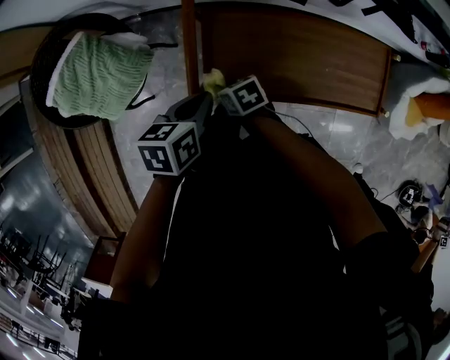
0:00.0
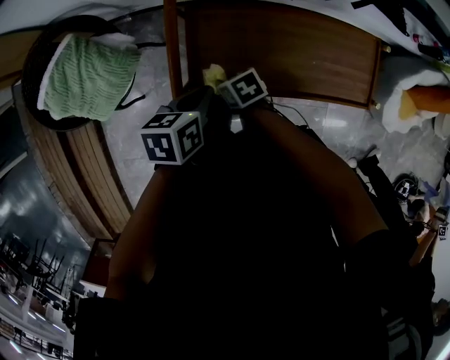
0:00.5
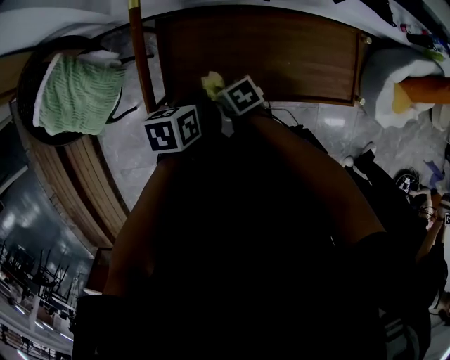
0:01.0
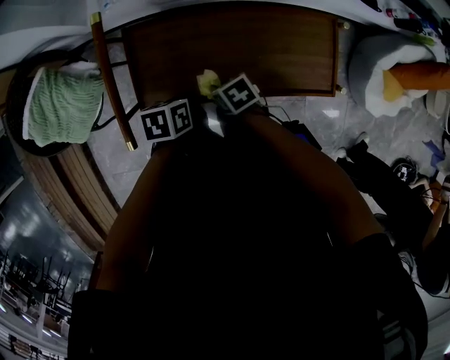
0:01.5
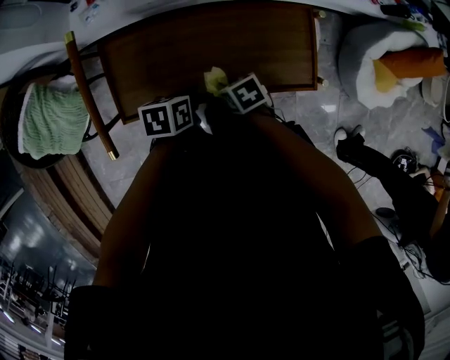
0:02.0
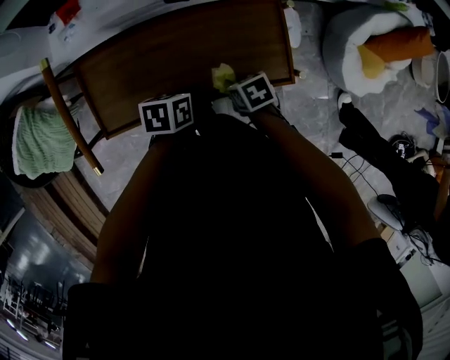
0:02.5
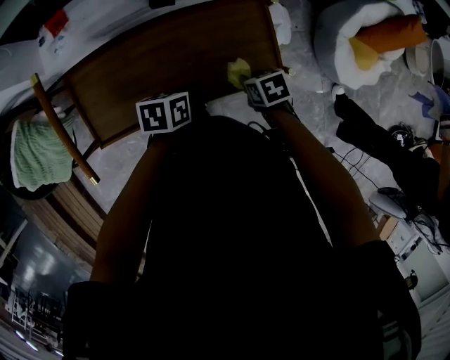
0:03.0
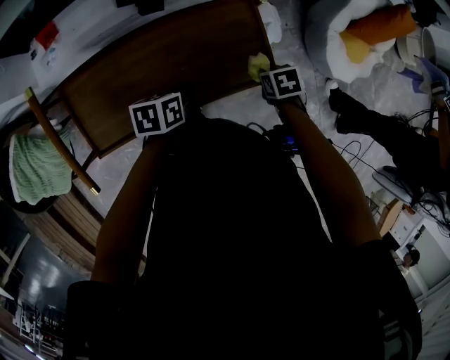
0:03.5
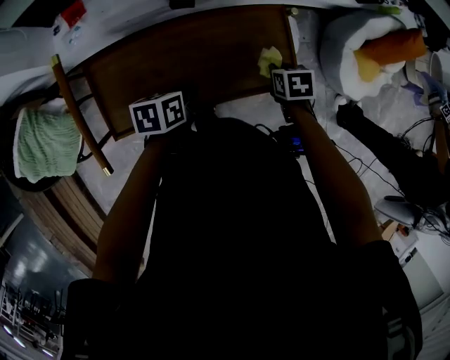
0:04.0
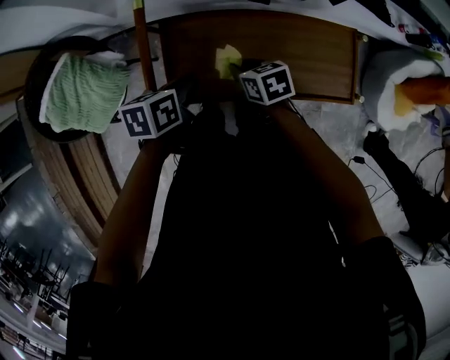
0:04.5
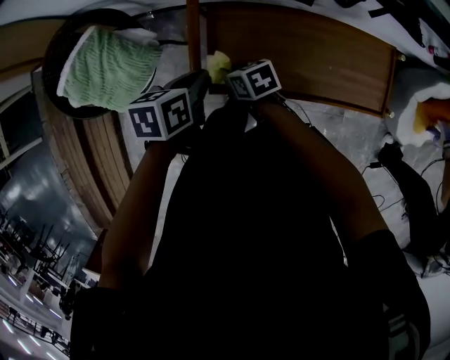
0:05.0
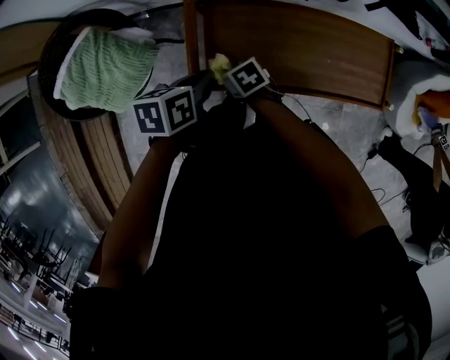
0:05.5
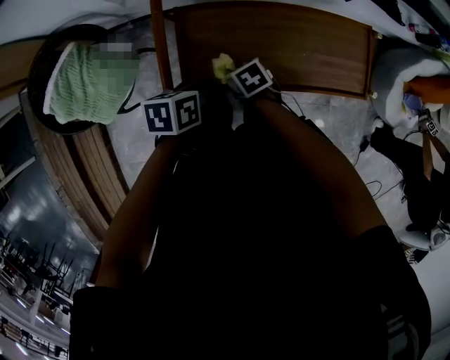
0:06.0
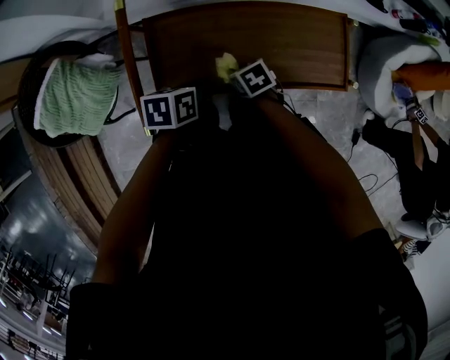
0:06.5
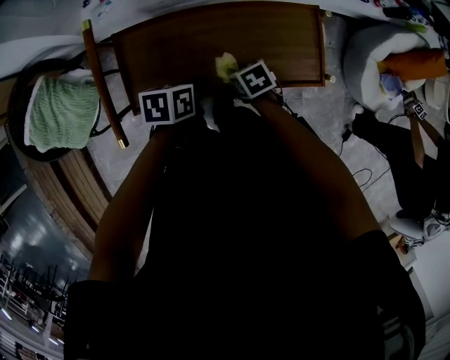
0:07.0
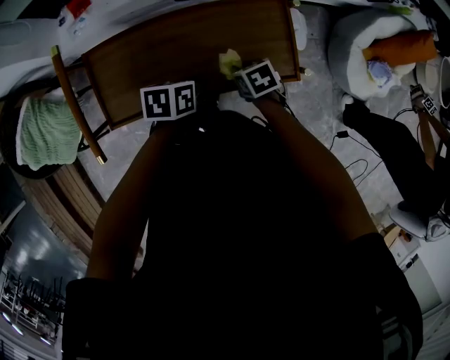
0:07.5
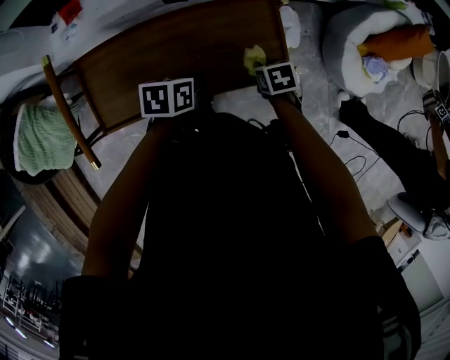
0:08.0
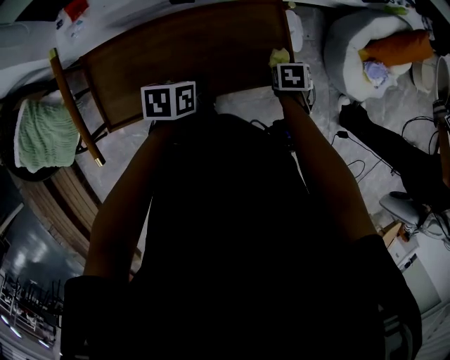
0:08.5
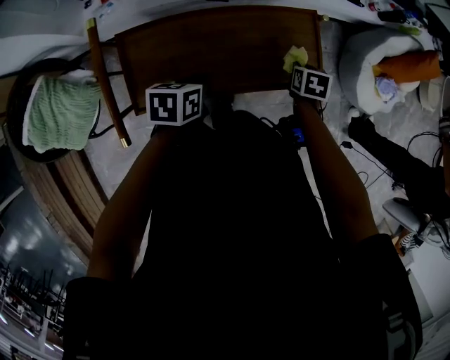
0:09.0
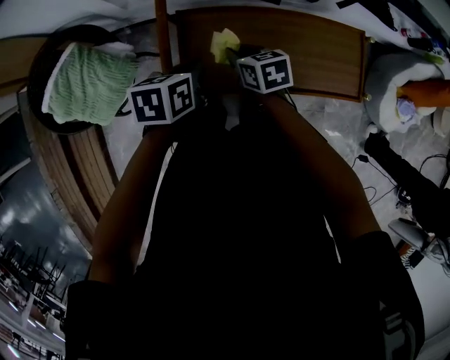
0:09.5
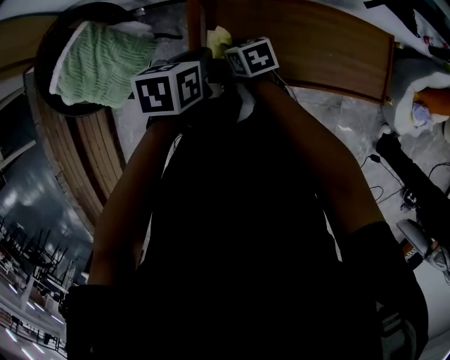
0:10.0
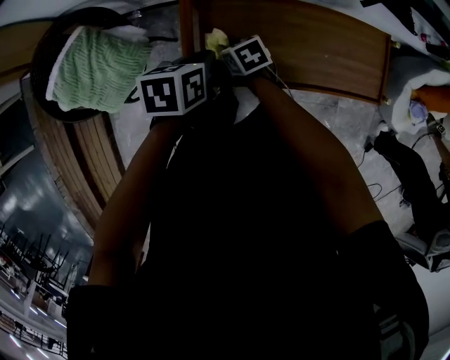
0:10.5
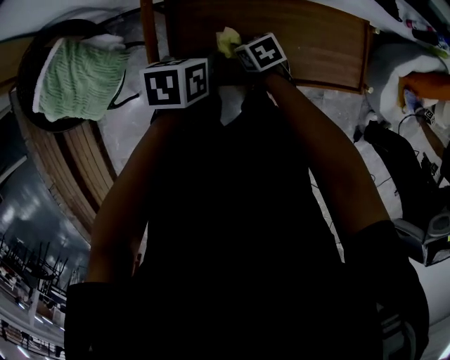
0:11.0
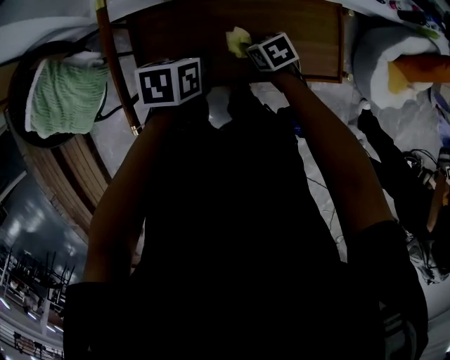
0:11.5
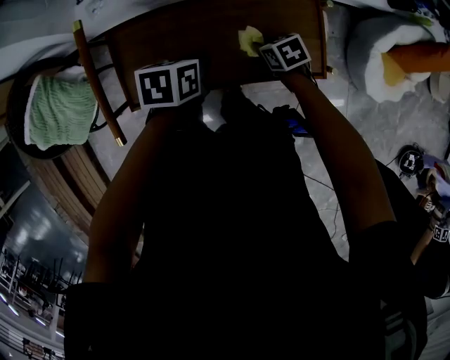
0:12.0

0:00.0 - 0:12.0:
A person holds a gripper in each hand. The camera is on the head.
0:00.0 - 0:02.0: The left gripper moves roughly 25 cm. Meanwhile the right gripper ends up approximately 30 cm from where it was.
0:02.0 - 0:04.0: The right gripper changes place by some 25 cm, and turns by some 30 degrees.
0:04.0 - 0:06.0: The left gripper moves about 20 cm, while the right gripper moves roughly 40 cm, and turns by some 40 degrees.
0:06.0 - 0:08.0: The left gripper changes place by approximately 30 cm. Meanwhile the right gripper ends up about 40 cm from where it was, and swivels approximately 30 degrees.
0:08.0 - 0:10.0: The left gripper ends up roughly 35 cm from where it was, and turns by about 20 degrees; the right gripper travels upward and back again, approximately 10 cm each way, and swivels roughly 30 degrees.
0:10.0 - 0:12.0: The grippers both shift to the right by about 30 cm.

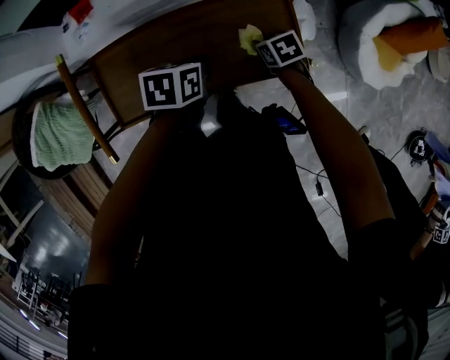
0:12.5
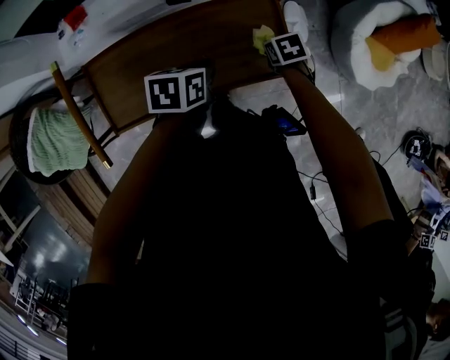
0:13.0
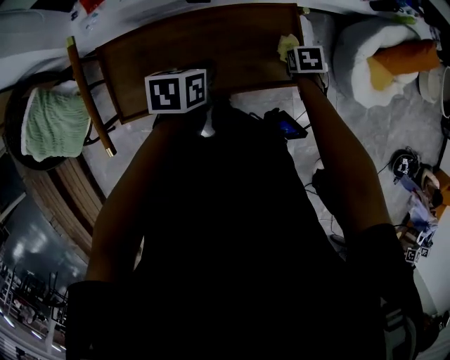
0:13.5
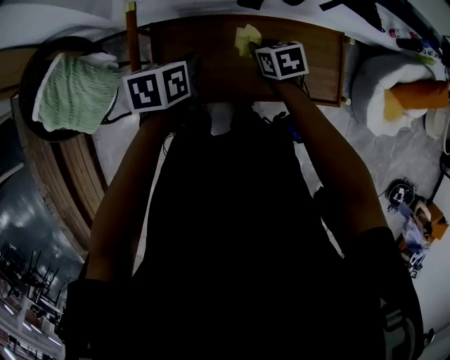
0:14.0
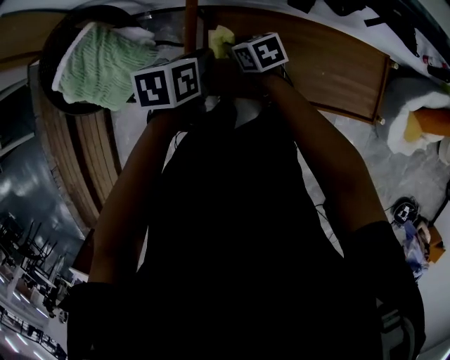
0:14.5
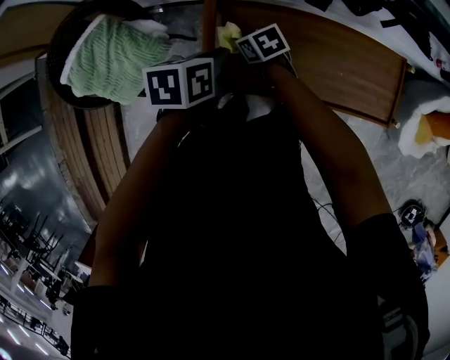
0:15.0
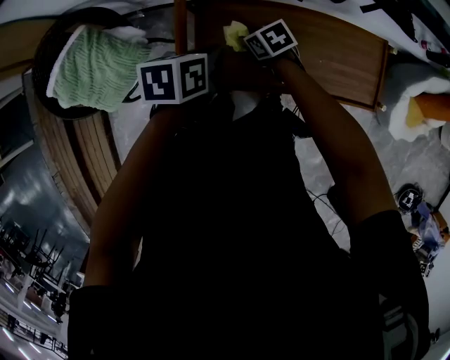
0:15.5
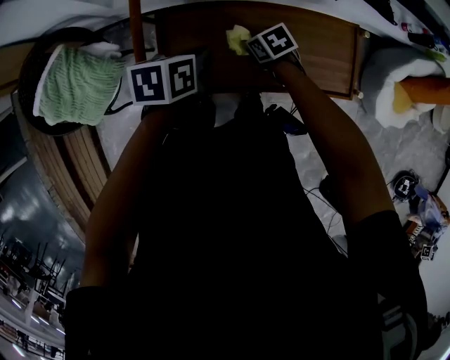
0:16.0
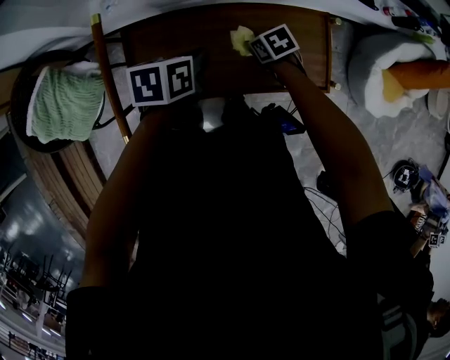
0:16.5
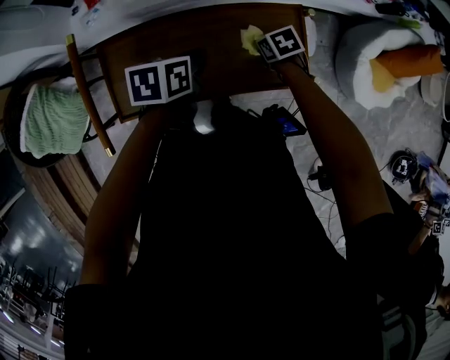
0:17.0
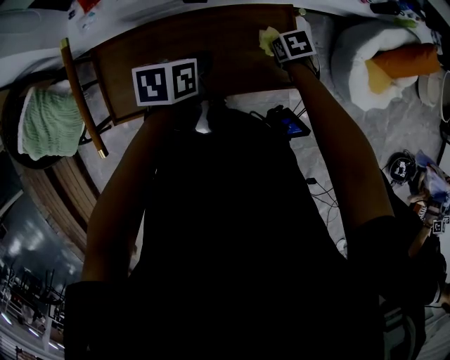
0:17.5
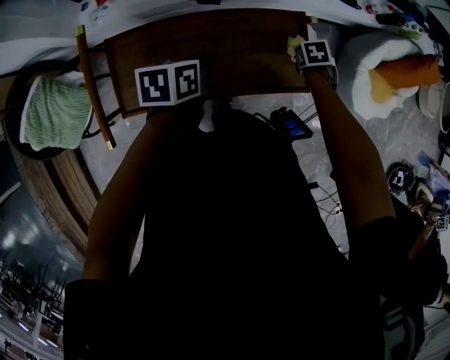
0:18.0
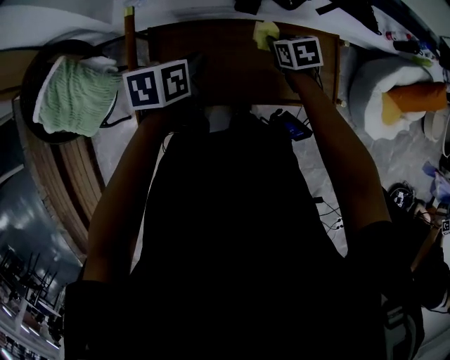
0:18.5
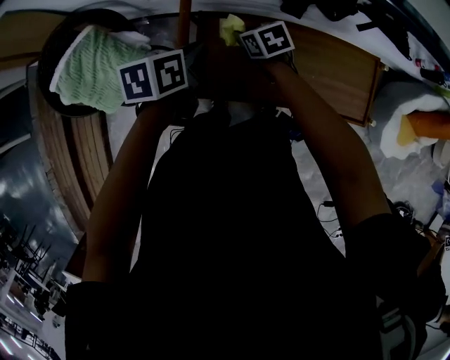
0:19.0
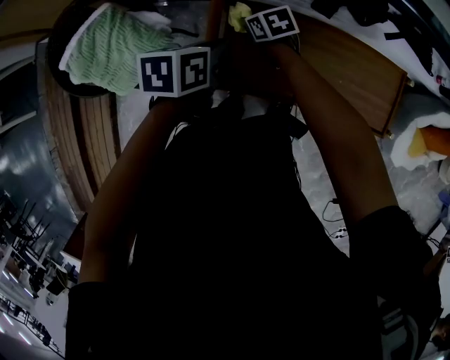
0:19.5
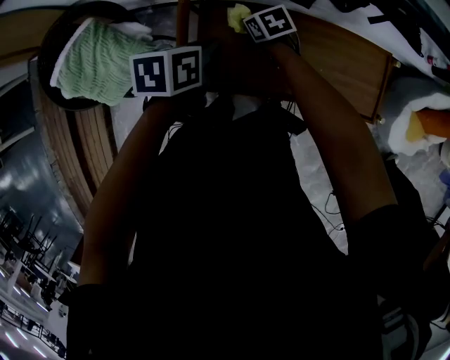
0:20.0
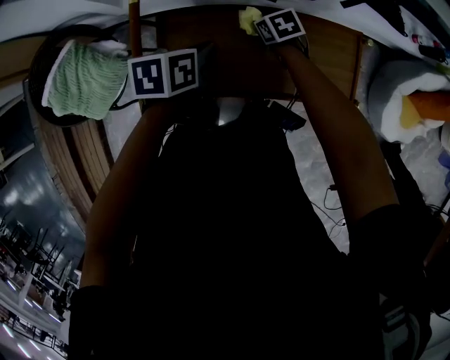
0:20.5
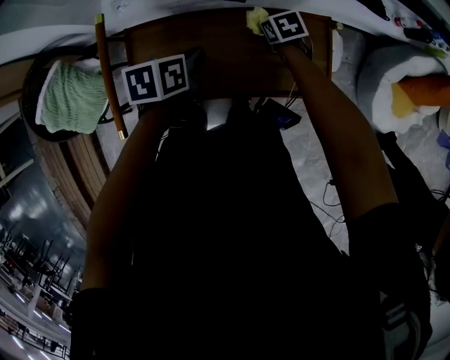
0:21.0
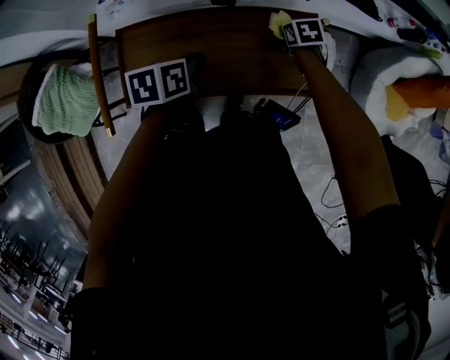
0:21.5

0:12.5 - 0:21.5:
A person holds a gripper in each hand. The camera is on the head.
0:12.5 - 0:14.5: The left gripper shifts by approximately 35 cm, and changes its angle by some 20 degrees; the right gripper shifts by roughly 40 cm, and turns by approximately 20 degrees.
0:14.5 - 0:17.0: Both grippers move to the right, some 35 cm. The right gripper swivels some 30 degrees.
0:17.0 - 0:19.5: The left gripper shifts by approximately 30 cm; the right gripper travels upward and back again, about 10 cm each way, and changes its angle by about 20 degrees.
0:19.5 - 0:21.5: The left gripper moves to the right, some 30 cm. Meanwhile the right gripper shifts roughly 50 cm to the right, and rotates about 30 degrees.

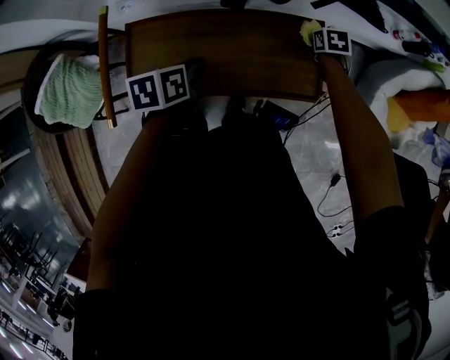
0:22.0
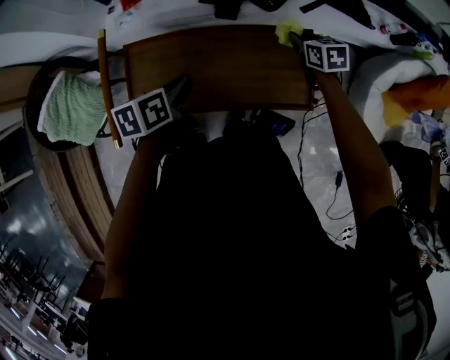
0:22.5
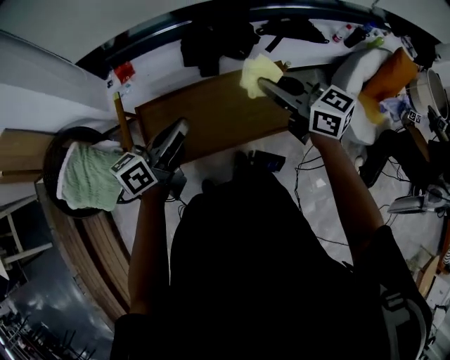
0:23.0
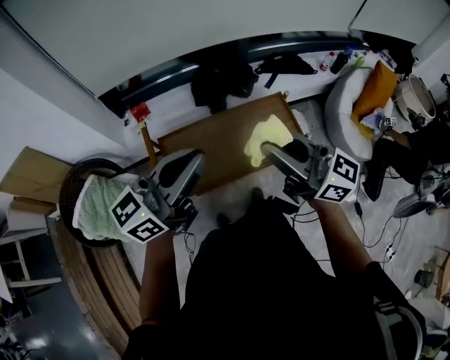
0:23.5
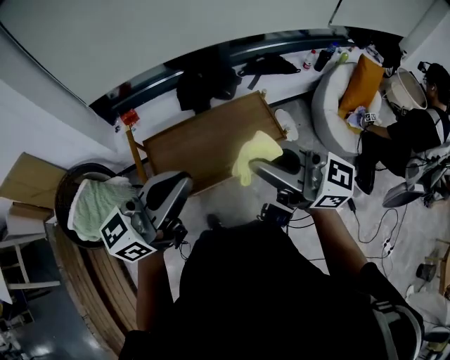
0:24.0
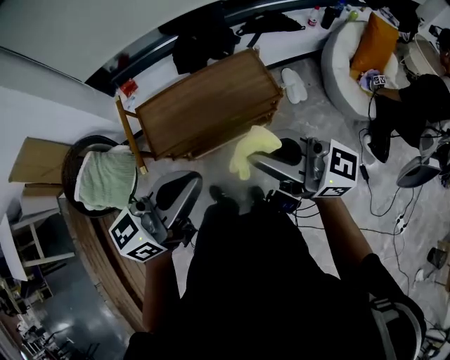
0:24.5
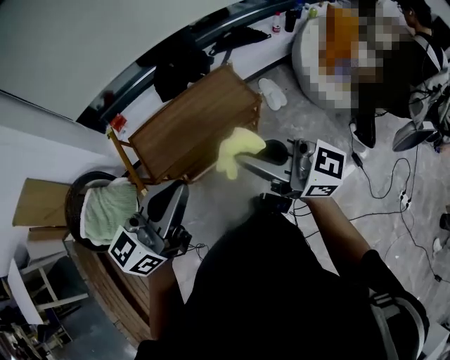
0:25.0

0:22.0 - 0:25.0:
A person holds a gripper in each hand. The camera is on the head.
0:22.0 - 0:23.5: The left gripper travels upward and backward by approximately 40 cm, and points its fingers some 60 degrees further upward; the right gripper moves upward, backward and to the left, roughly 60 cm, and tips its fingers upward by about 80 degrees.
0:23.5 - 0:25.0: The two grippers go some 20 cm backward and to the right.

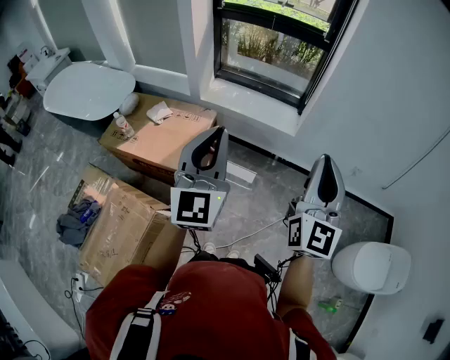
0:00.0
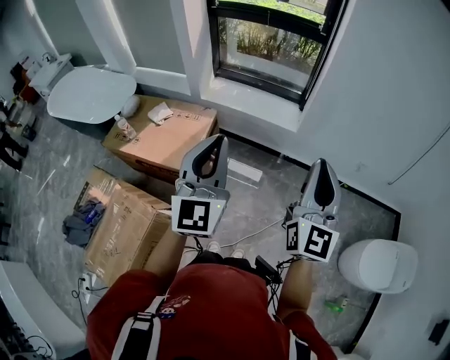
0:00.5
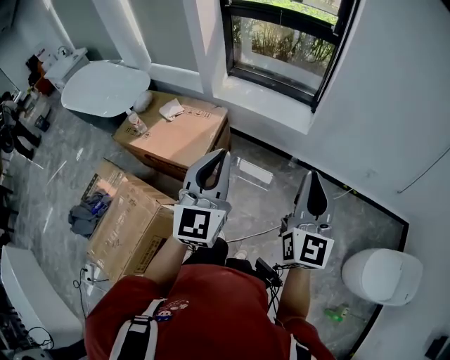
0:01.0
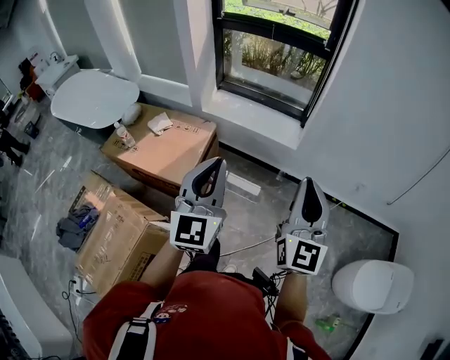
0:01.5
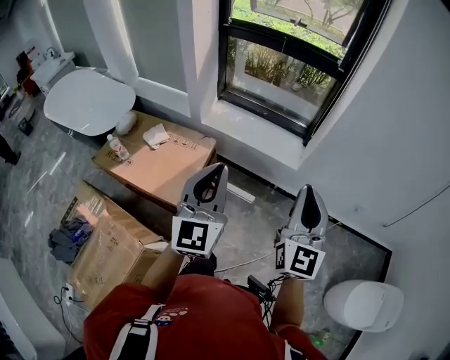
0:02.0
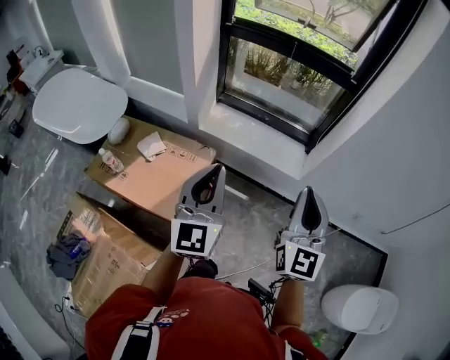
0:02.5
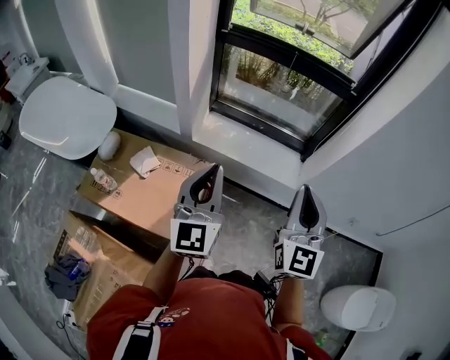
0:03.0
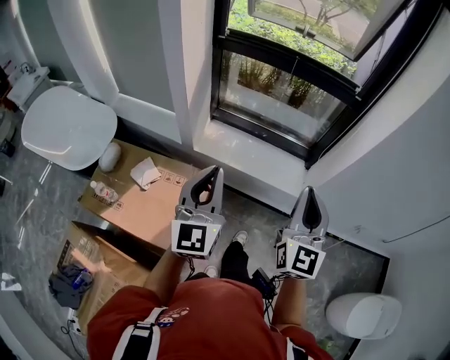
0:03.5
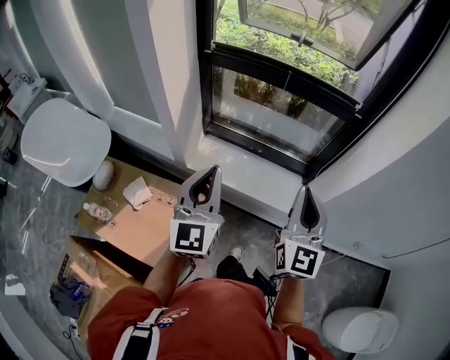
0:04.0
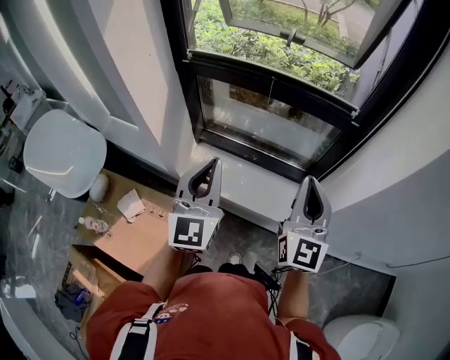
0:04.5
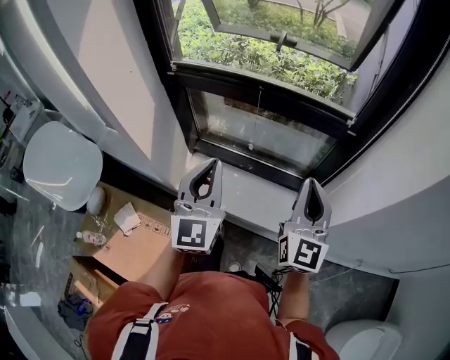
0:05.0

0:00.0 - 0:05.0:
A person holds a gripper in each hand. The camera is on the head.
0:00.0 - 0:02.5: The grippers both shift forward by approximately 25 cm.
0:02.5 - 0:05.0: The pair of grippers is taken forward, some 40 cm.
